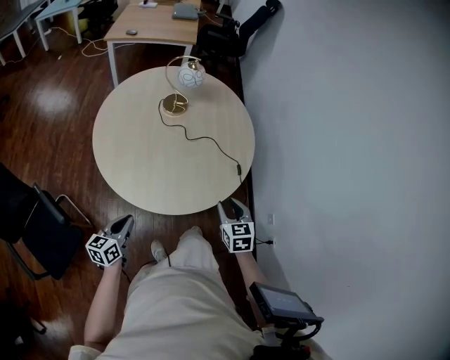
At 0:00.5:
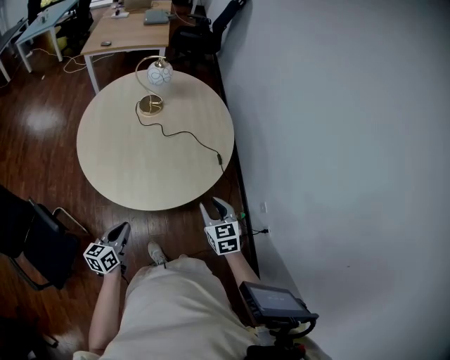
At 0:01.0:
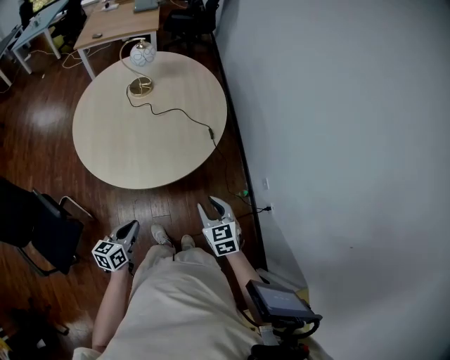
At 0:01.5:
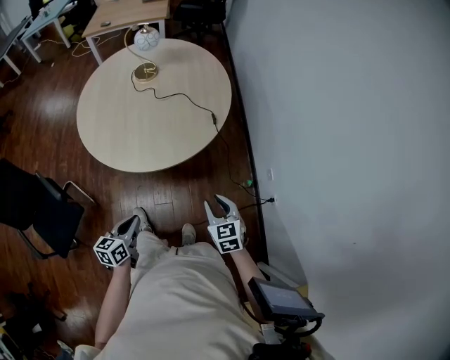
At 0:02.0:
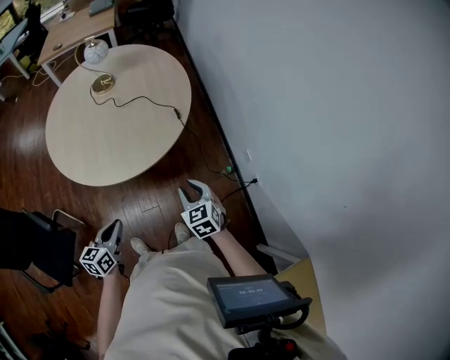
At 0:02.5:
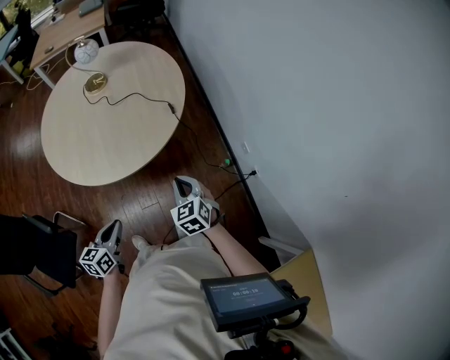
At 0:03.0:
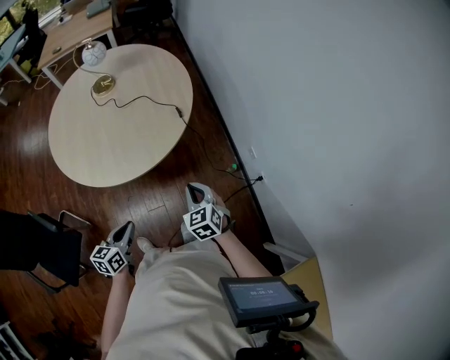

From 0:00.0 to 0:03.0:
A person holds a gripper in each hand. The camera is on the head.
From 0:00.0 to 0:01.5: The left gripper heads to the right and backward, covering some 25 cm; the right gripper heads backward and to the right, covering approximately 25 cm.
From 0:01.5 to 0:03.0: The right gripper closes its fingers.

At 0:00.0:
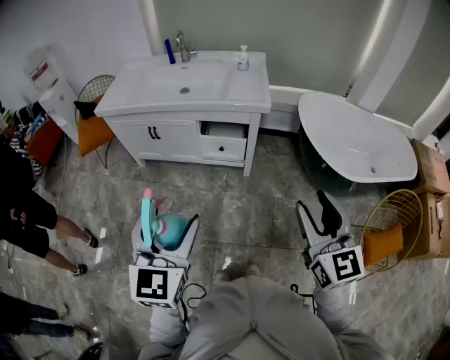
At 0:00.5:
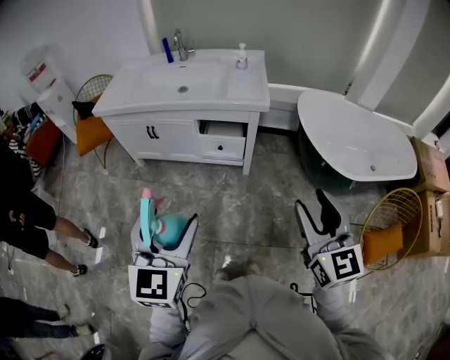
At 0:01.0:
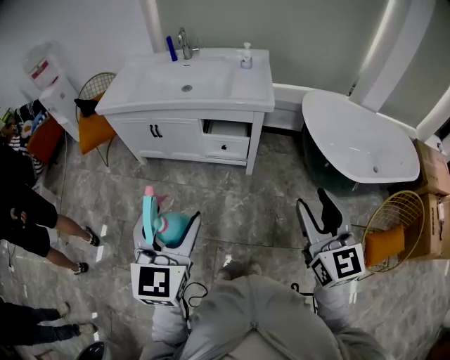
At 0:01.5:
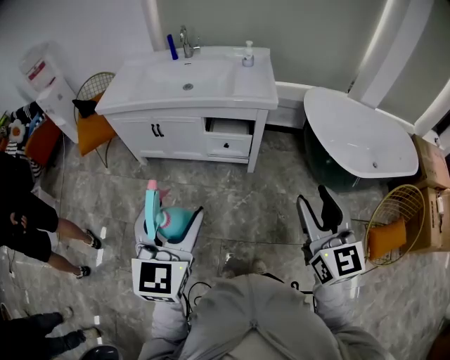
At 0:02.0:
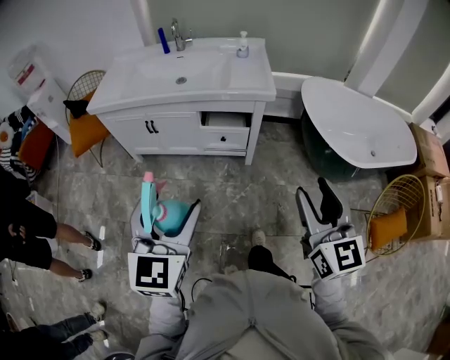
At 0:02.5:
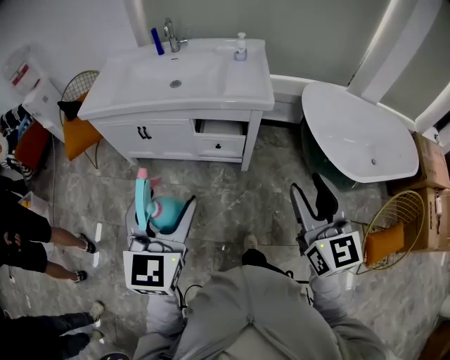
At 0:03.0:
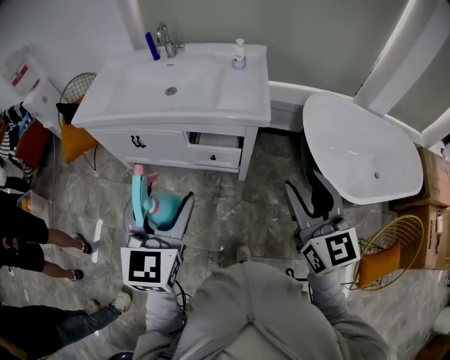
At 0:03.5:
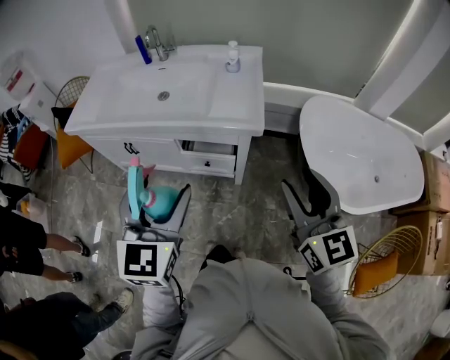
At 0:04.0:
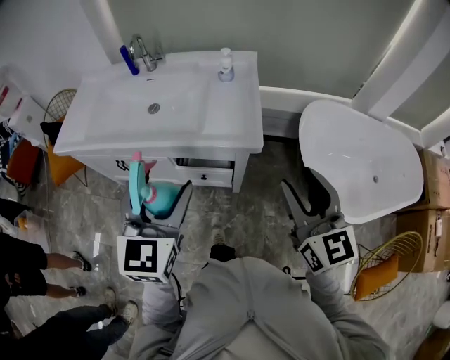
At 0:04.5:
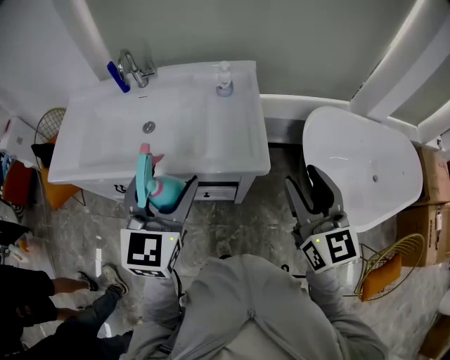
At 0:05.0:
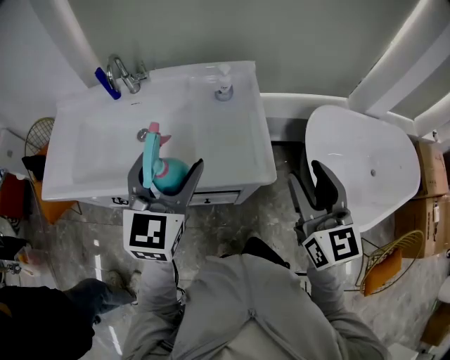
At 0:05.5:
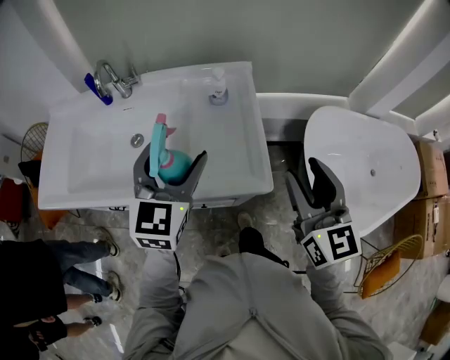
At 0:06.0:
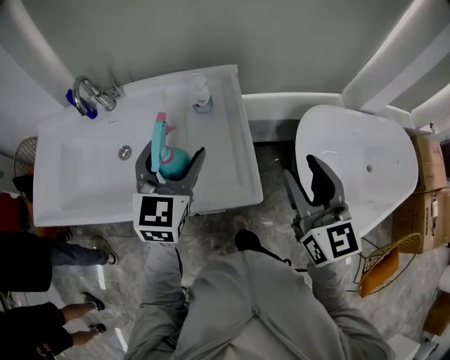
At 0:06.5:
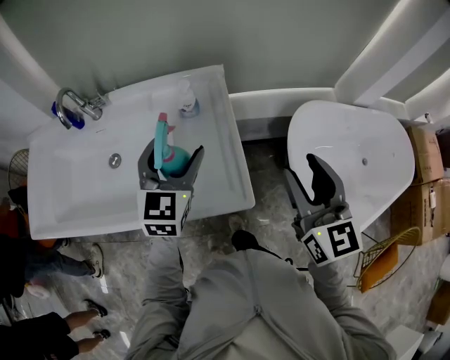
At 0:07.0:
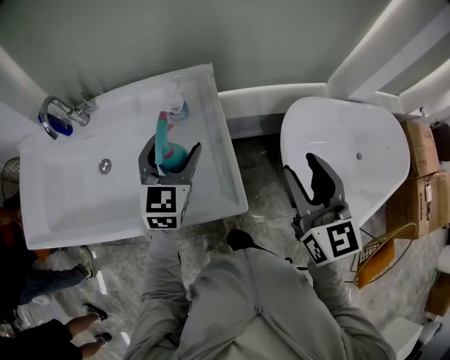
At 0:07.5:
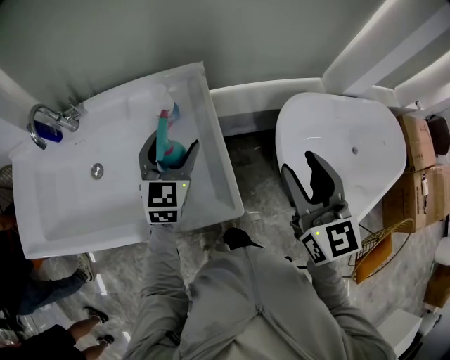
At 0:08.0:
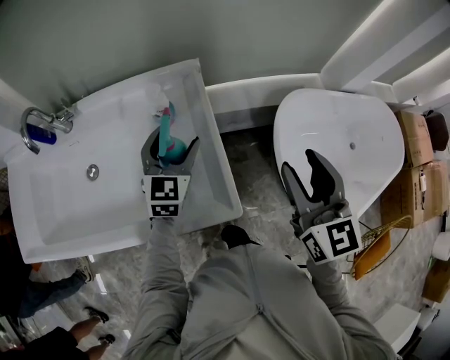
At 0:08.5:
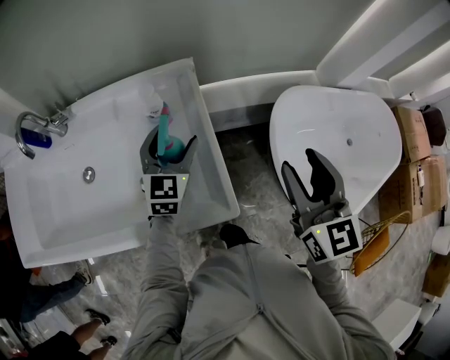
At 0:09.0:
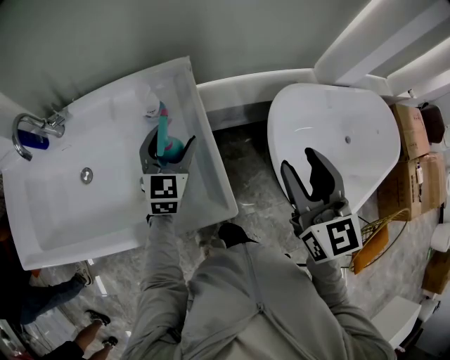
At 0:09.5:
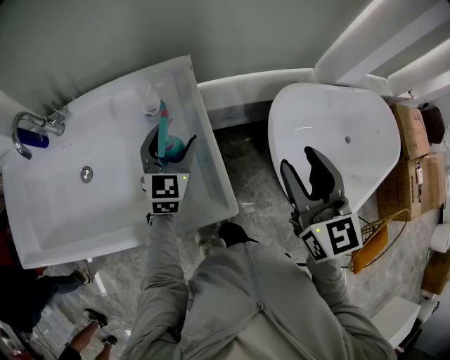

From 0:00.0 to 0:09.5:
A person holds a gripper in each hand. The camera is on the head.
From 0:00.0 to 0:02.0: The right gripper moves to the left, roughly 5 cm. Meanwhile the left gripper shifts by roughly 5 cm.
From 0:02.0 to 0:04.0: The two grippers go roughly 35 cm forward.
From 0:04.0 to 0:05.5: The two grippers go some 20 cm forward.
From 0:05.5 to 0:07.5: The right gripper shifts roughly 10 cm forward and to the right, while the left gripper shifts about 20 cm forward, downward and to the right.
From 0:07.5 to 0:09.5: The left gripper changes place by about 5 cm.

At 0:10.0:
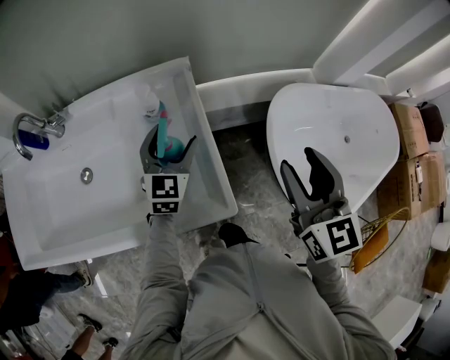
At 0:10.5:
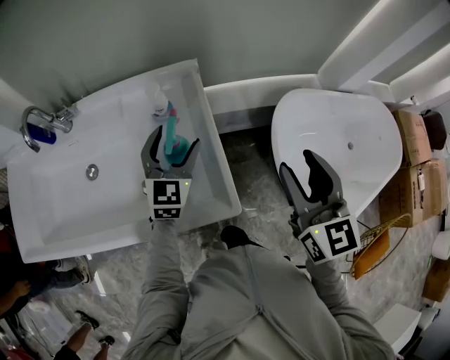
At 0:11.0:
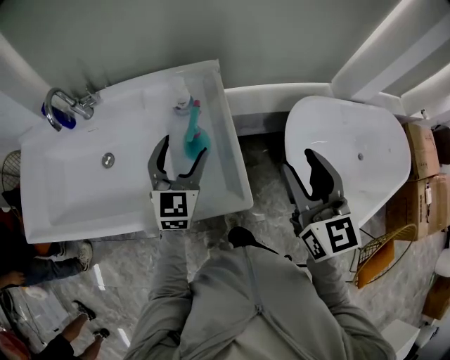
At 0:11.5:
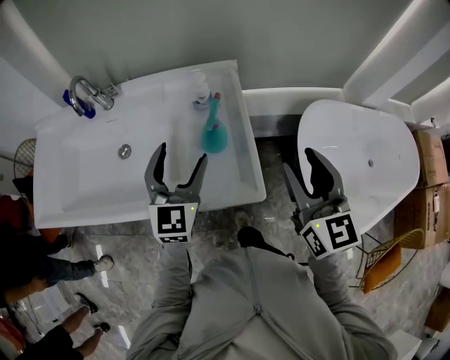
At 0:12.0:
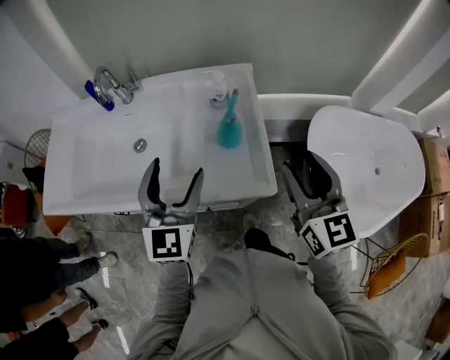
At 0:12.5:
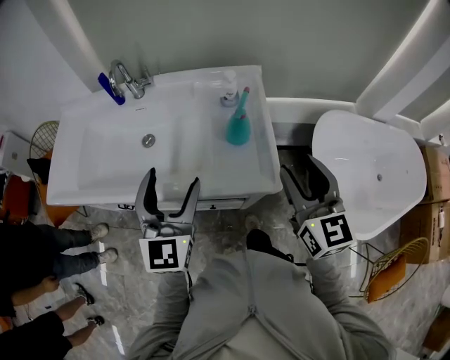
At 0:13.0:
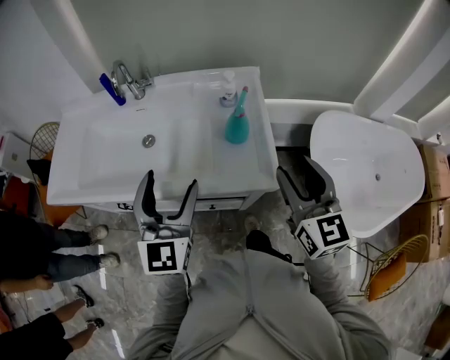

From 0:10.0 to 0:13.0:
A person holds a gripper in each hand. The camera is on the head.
From 0:10.0 to 0:11.5: The right gripper moves to the left, approximately 5 cm, while the left gripper travels backward, upward and to the left by approximately 20 cm.
From 0:11.5 to 0:13.0: The right gripper goes some 10 cm to the left and backward. The left gripper moves backward, to the left and upward, approximately 20 cm.

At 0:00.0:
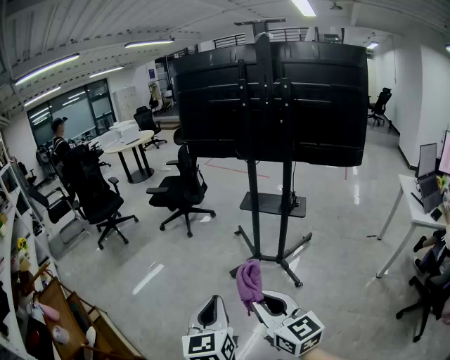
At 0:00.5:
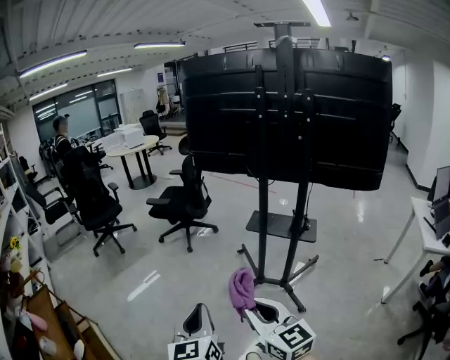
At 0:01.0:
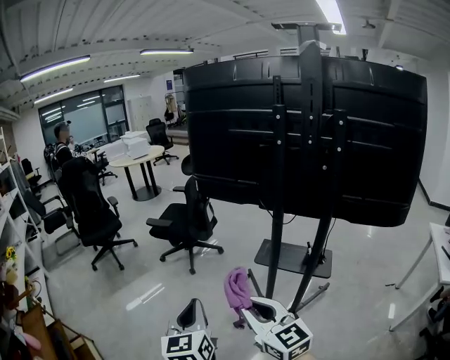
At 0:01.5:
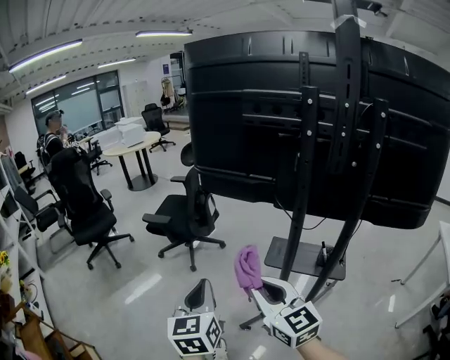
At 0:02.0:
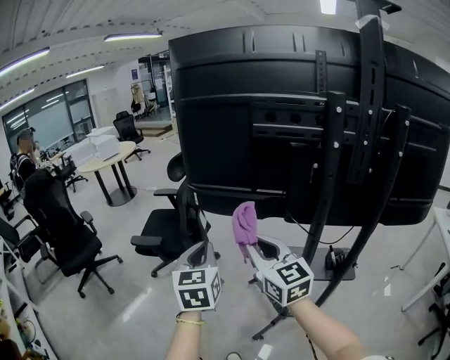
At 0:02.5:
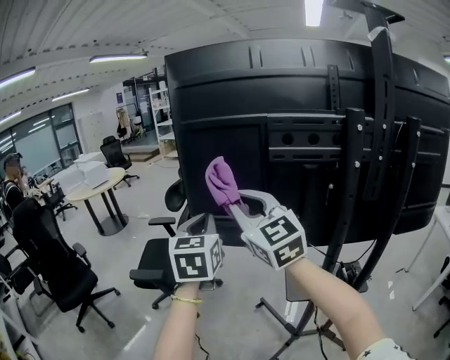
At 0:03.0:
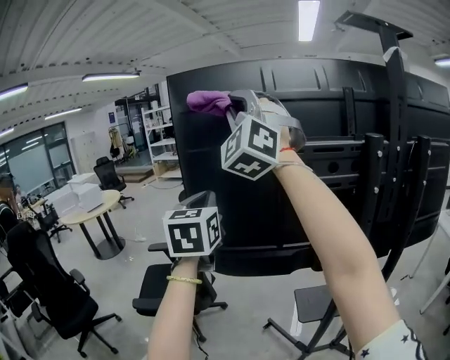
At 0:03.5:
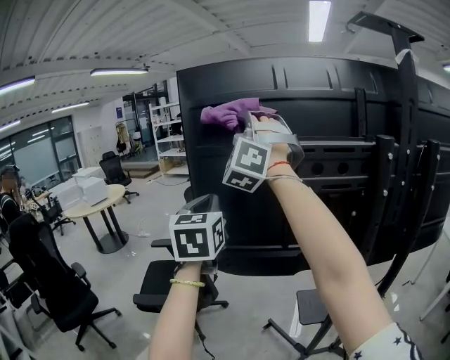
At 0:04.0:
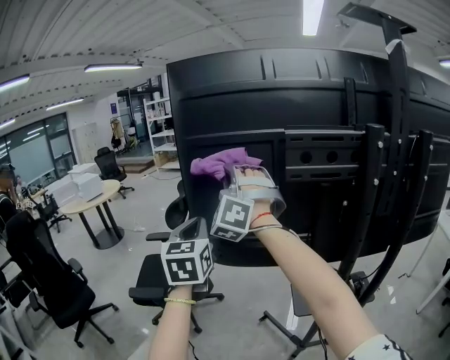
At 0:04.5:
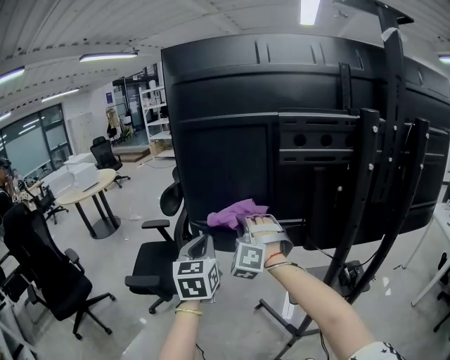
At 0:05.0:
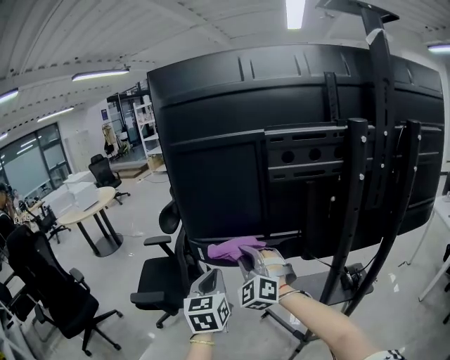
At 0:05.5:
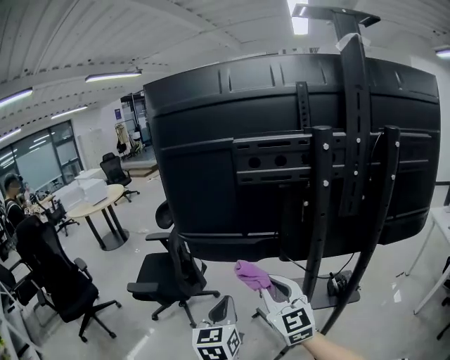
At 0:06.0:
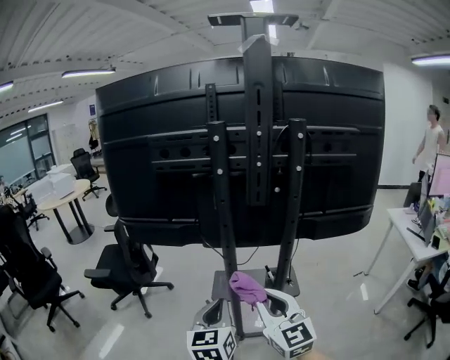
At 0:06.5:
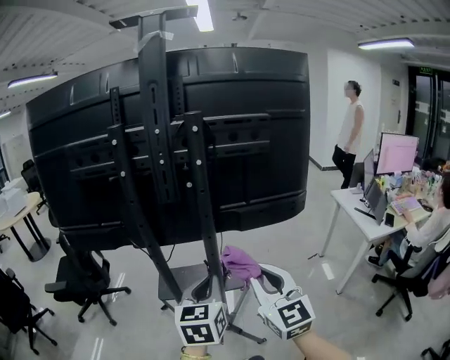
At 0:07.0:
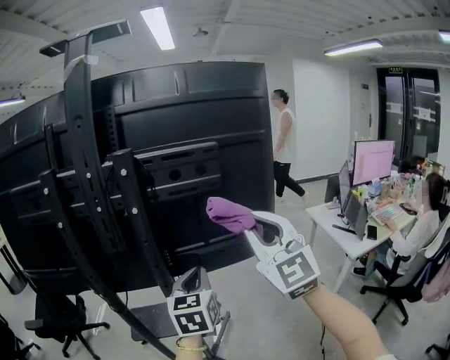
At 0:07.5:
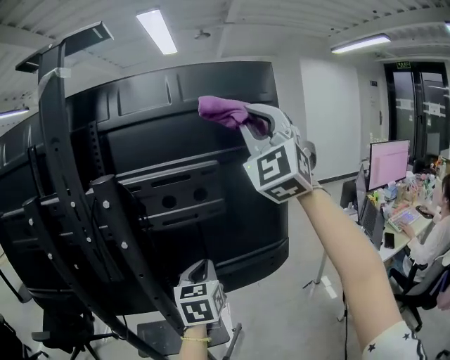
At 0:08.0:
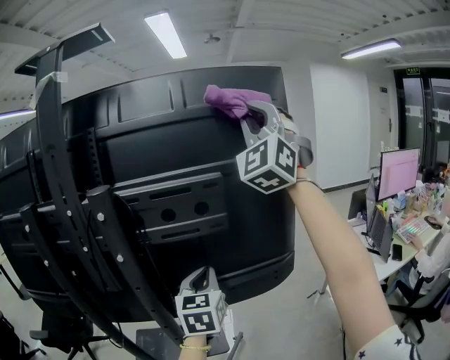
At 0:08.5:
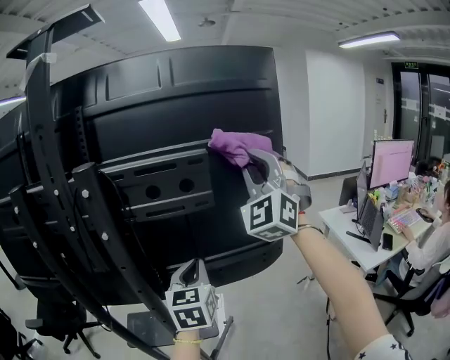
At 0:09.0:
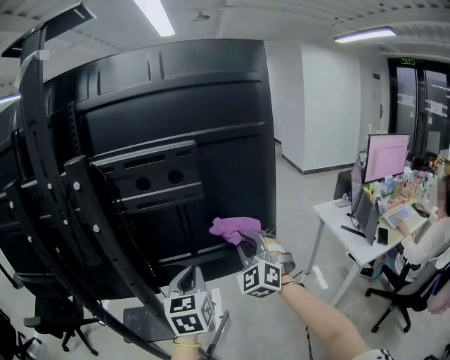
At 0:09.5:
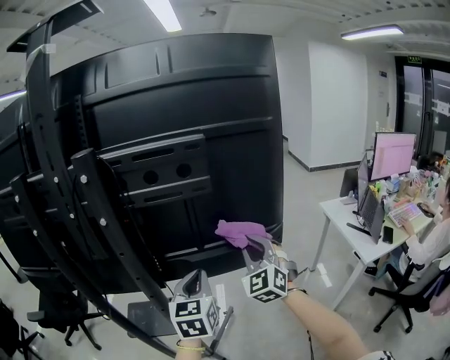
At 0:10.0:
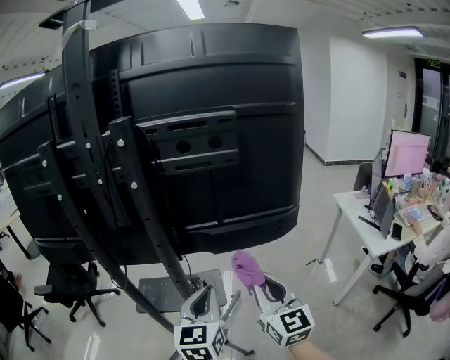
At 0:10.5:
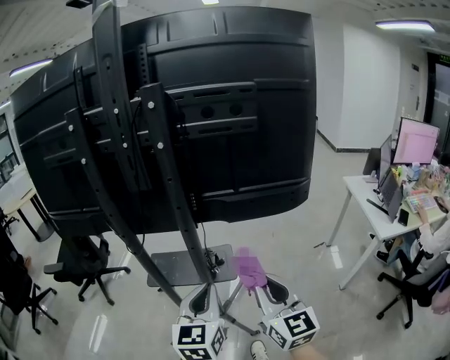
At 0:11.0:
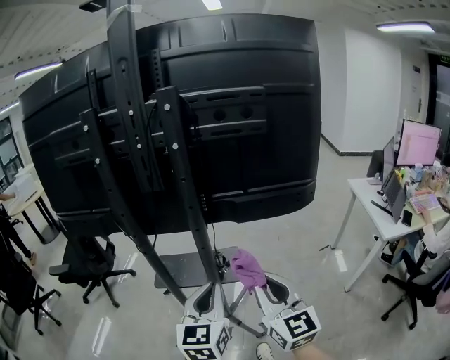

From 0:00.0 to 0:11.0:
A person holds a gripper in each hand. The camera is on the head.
From 0:00.0 to 0:02.0: The pair of grippers is taken forward, approximately 70 cm.
From 0:02.0 to 0:03.5: The right gripper goes roughly 50 cm upward and forward, and rotates around the line of its fingers by some 80 degrees, counterclockwise from behind. The left gripper is displaced forward and upward by about 30 cm.
From 0:03.5 to 0:05.5: Both grippers travel together downward, backward and to the right, some 40 cm. The right gripper rolls clockwise, seen from behind, by roughly 70 degrees.
From 0:05.5 to 0:07.5: Both grippers are carried to the right, about 70 cm. The right gripper is displaced upward by approximately 40 cm, and rotates around the line of its fingers by some 60 degrees, counterclockwise from behind. Meanwhile the left gripper swivels roughly 20 degrees.
From 0:07.5 to 0:09.0: The left gripper shifts about 5 cm downward, while the right gripper travels downward by roughly 40 cm, and tips its fingers downward by some 30 degrees.
From 0:09.0 to 0:11.0: The two grippers go approximately 30 cm backward and to the left. The right gripper twists approximately 60 degrees clockwise, seen from behind.
